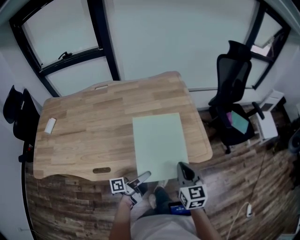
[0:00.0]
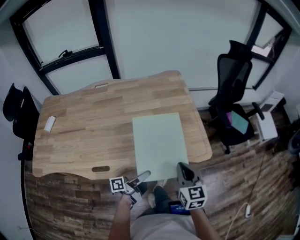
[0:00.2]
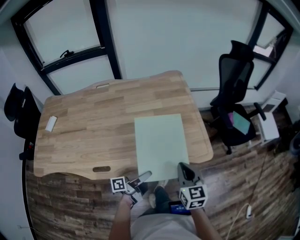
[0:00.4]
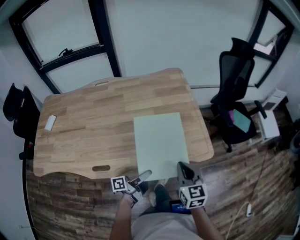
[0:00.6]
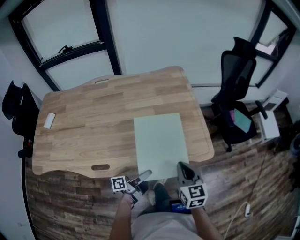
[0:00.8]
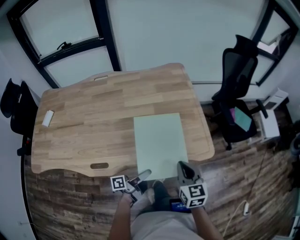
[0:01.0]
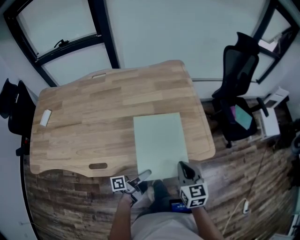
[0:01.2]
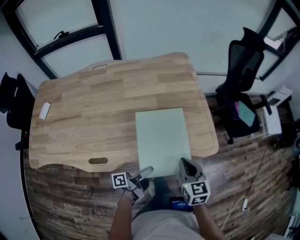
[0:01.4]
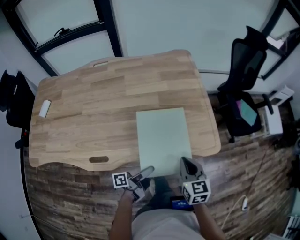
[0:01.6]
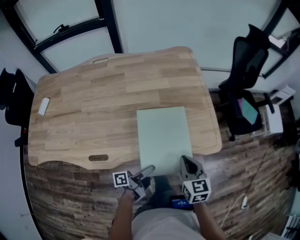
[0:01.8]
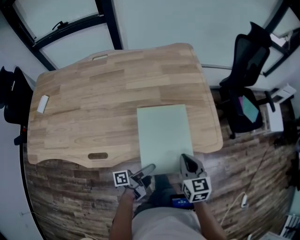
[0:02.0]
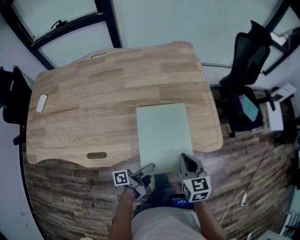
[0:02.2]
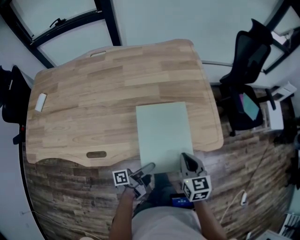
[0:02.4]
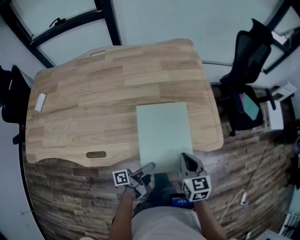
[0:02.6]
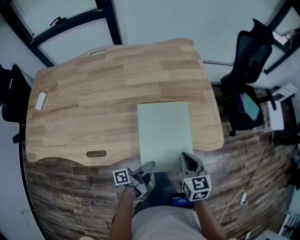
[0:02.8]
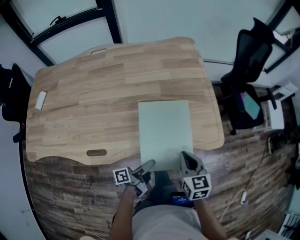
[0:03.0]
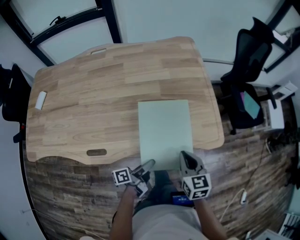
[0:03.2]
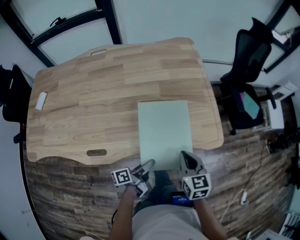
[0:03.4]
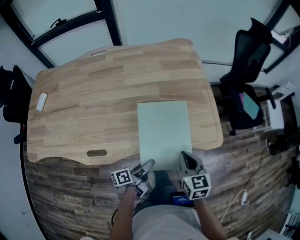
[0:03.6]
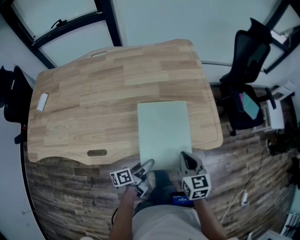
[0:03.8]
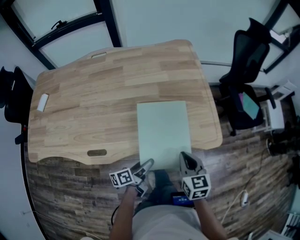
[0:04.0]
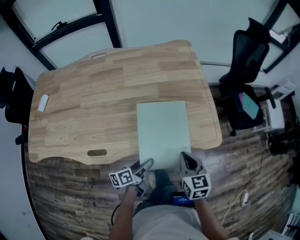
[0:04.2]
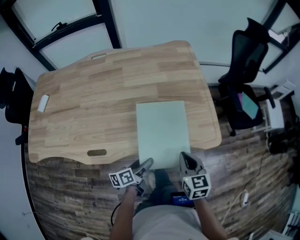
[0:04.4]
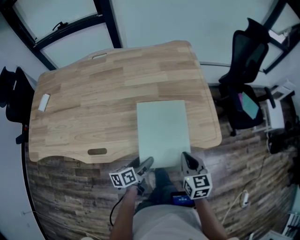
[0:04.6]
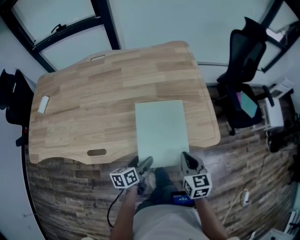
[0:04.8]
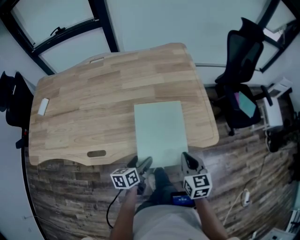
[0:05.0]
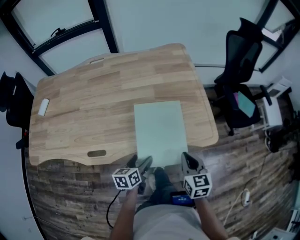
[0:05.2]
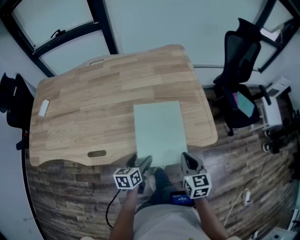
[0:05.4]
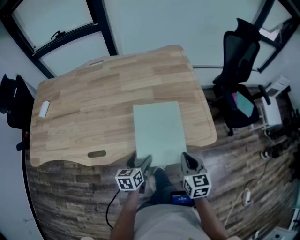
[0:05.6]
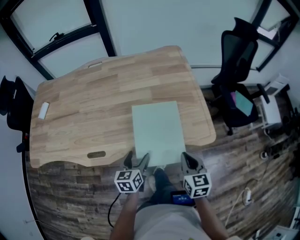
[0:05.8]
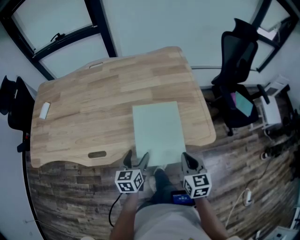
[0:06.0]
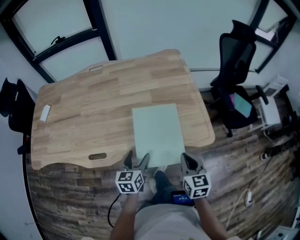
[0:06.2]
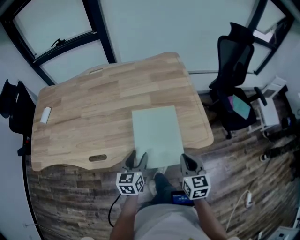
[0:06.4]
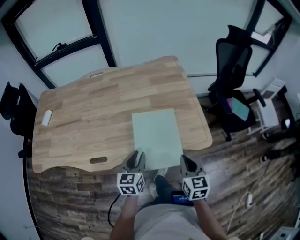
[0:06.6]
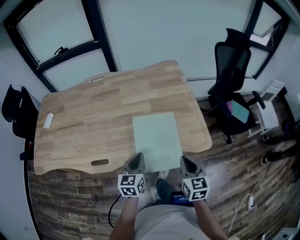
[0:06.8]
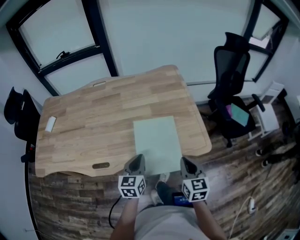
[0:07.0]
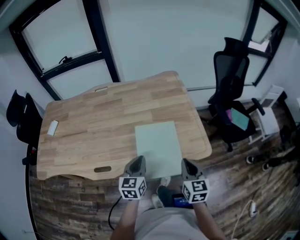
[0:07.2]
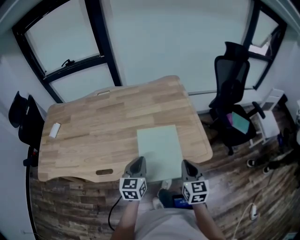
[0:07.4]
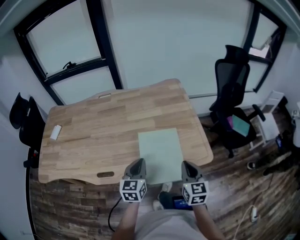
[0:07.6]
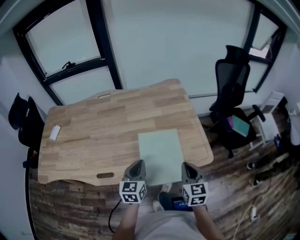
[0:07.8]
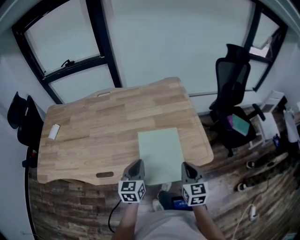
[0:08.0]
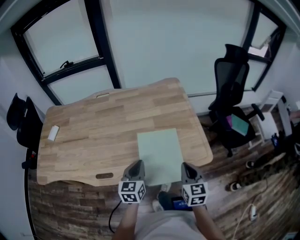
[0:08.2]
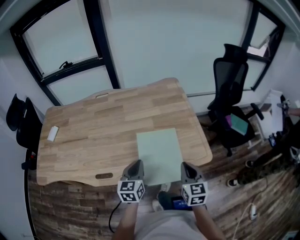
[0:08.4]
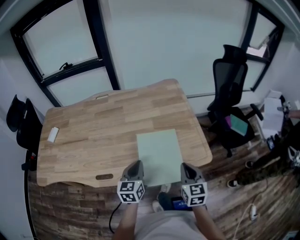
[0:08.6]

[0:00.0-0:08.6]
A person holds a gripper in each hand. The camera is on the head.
0:00.0 to 0:01.4: The grippers both shift downward by roughly 5 cm.
0:01.4 to 0:02.8: There are only small adjustments of the grippers.
0:02.8 to 0:04.4: The left gripper turns by some 30 degrees.
0:04.4 to 0:05.8: The left gripper changes place by about 5 cm, and rotates approximately 40 degrees.
0:05.8 to 0:07.2: The right gripper moves upward, approximately 5 cm; the left gripper goes roughly 10 cm upward, and closes up.
0:07.2 to 0:08.6: The grippers move only a little.

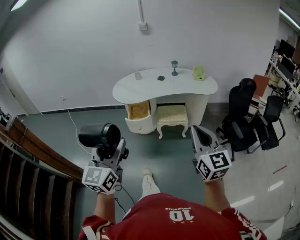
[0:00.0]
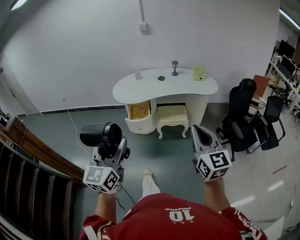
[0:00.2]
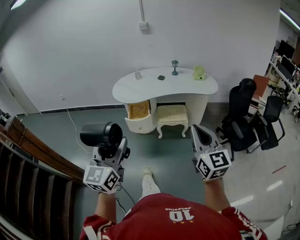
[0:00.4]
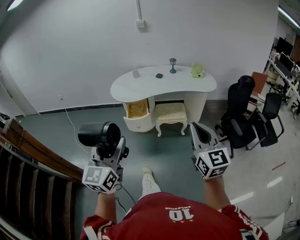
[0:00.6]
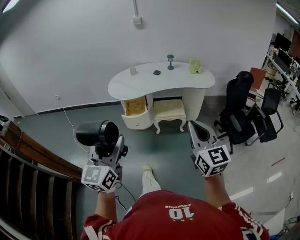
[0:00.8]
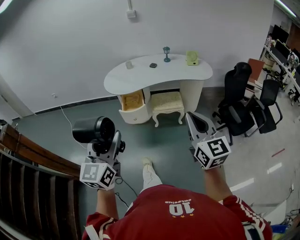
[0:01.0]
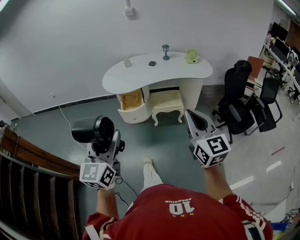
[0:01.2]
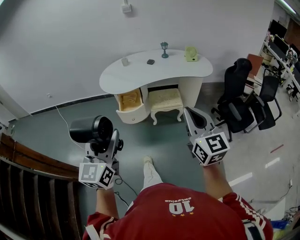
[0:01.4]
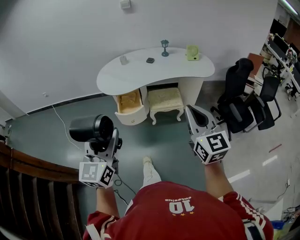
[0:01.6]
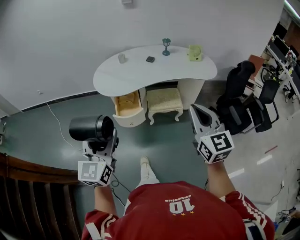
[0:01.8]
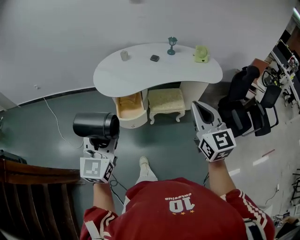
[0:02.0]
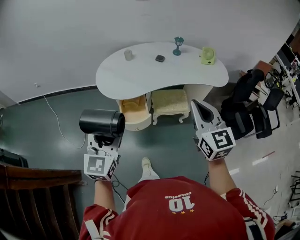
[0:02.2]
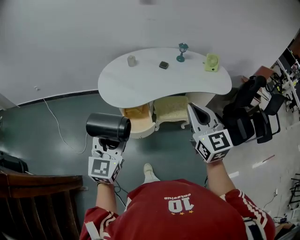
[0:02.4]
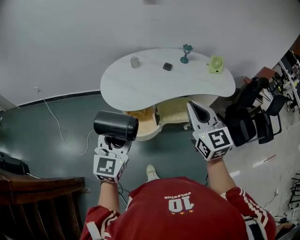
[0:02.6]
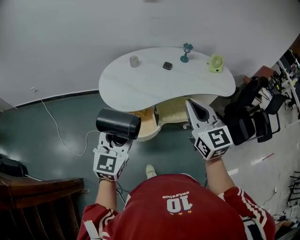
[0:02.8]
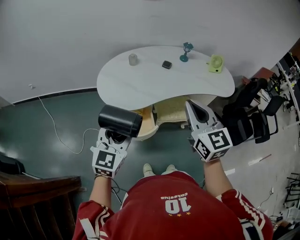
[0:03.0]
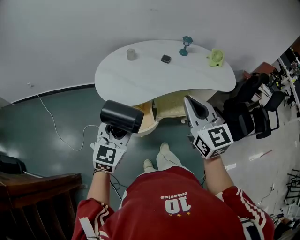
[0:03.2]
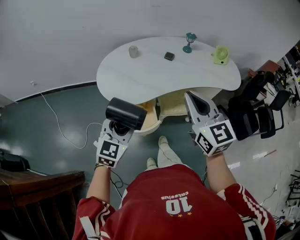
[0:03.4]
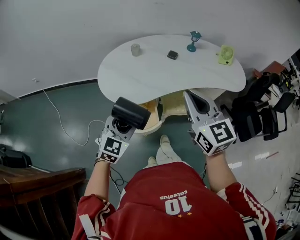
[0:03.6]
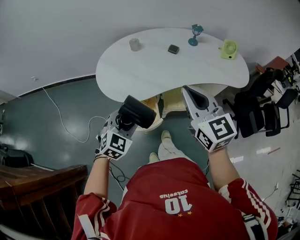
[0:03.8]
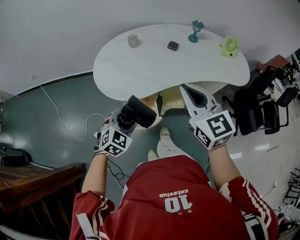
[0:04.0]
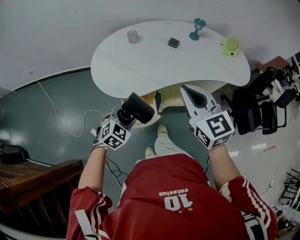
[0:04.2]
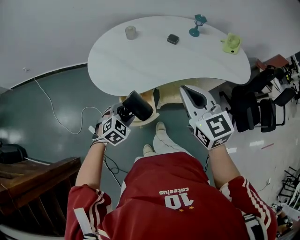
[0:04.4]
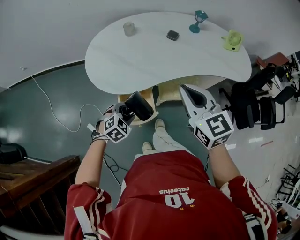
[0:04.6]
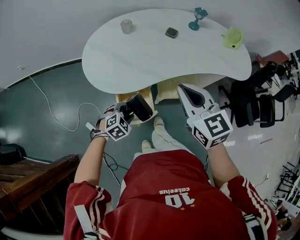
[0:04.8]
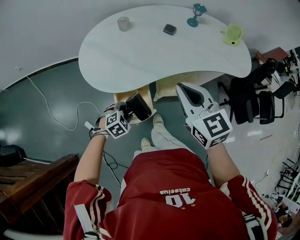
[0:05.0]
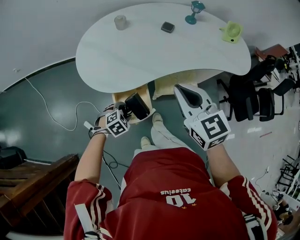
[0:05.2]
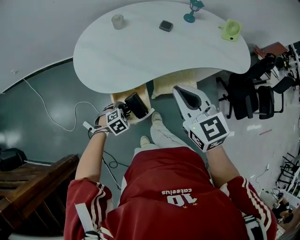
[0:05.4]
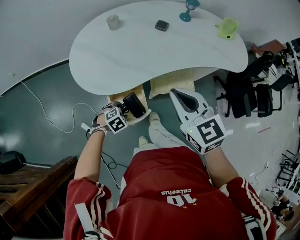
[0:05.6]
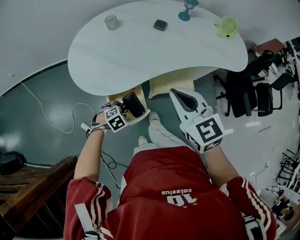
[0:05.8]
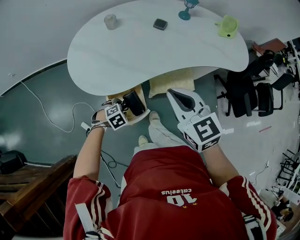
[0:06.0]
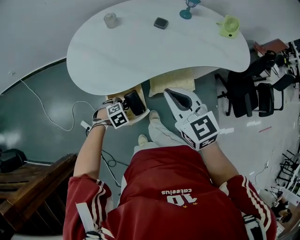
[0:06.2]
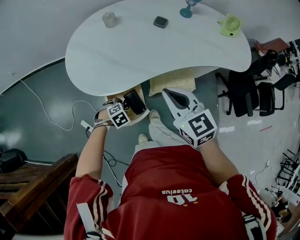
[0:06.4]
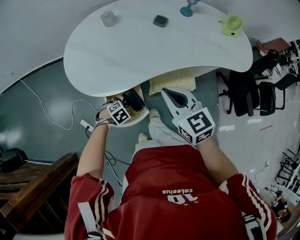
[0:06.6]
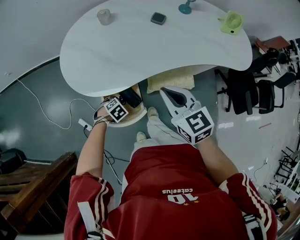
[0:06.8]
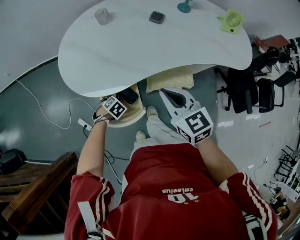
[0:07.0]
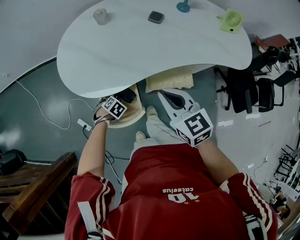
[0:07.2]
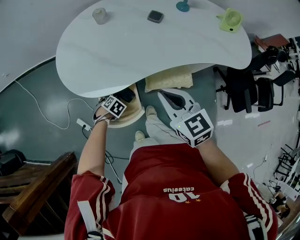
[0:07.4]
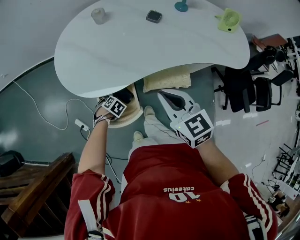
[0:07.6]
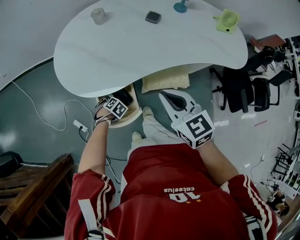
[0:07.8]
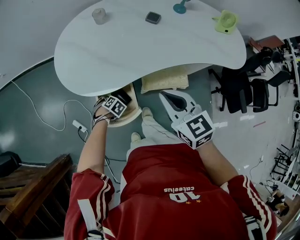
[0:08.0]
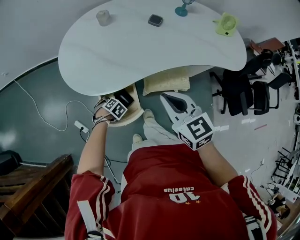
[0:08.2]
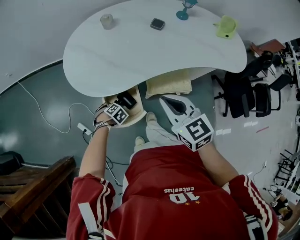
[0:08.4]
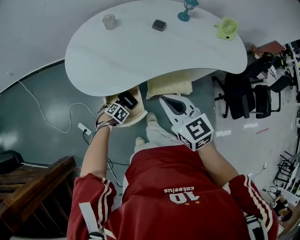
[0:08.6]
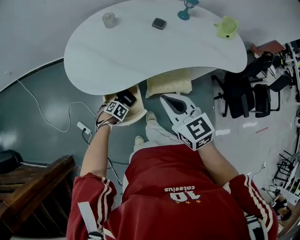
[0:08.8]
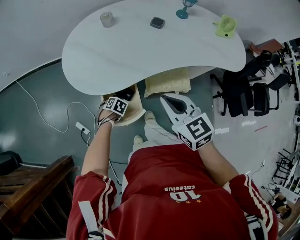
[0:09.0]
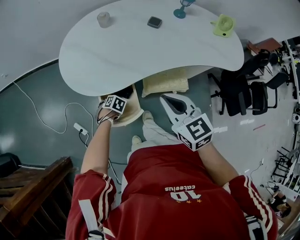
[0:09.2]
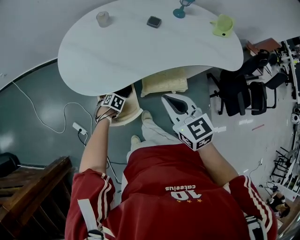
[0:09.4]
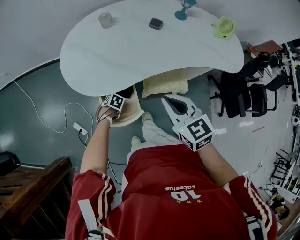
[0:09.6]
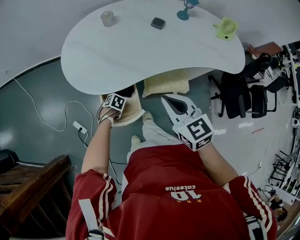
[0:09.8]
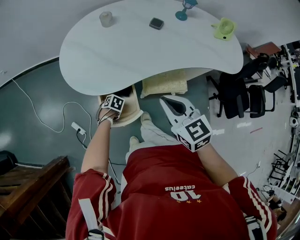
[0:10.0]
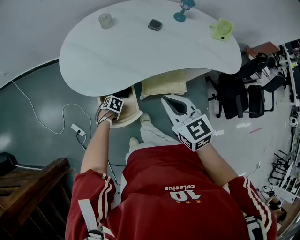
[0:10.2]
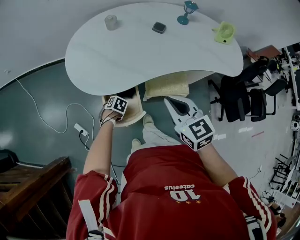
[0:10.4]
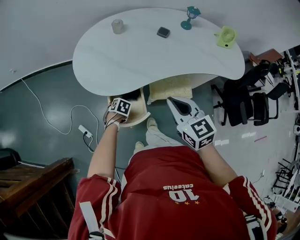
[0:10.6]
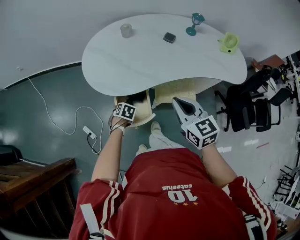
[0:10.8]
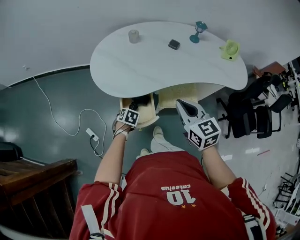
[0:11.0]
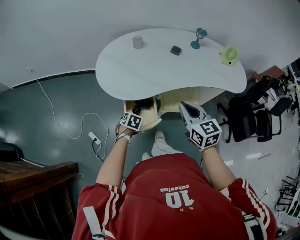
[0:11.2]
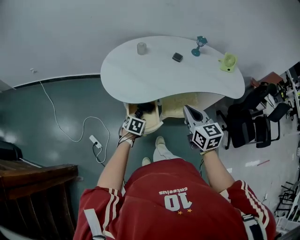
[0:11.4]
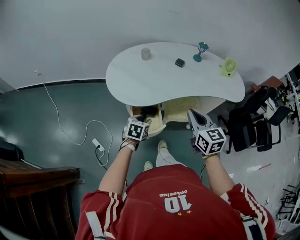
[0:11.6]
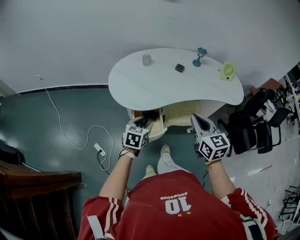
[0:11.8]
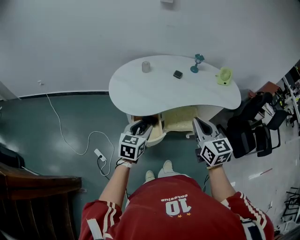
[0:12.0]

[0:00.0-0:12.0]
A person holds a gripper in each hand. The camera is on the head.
0:00.0 to 0:01.6: Both grippers move forward, approximately 15 cm.
0:01.6 to 0:03.0: The left gripper is displaced forward by roughly 30 cm, and changes its angle by some 20 degrees; the right gripper shifts approximately 35 cm forward and to the left.
0:03.0 to 0:04.4: The left gripper moves downward, roughly 25 cm, and tilts its fingers about 40 degrees downward. Meanwhile the right gripper heads downward and forward, covering about 15 cm.
0:04.4 to 0:06.0: The left gripper is displaced downward by roughly 15 cm, and swivels approximately 30 degrees, while the right gripper goes about 10 cm downward.
0:06.0 to 0:07.6: Both grippers move downward, approximately 10 cm. The left gripper swivels roughly 30 degrees.
0:07.6 to 0:09.0: The grippers make only small movements.
0:09.0 to 0:10.4: The grippers move only a little.
0:10.4 to 0:12.0: The left gripper shifts approximately 40 cm upward, and points its fingers approximately 60 degrees further upward. Meanwhile the right gripper heads upward, covering approximately 15 cm.

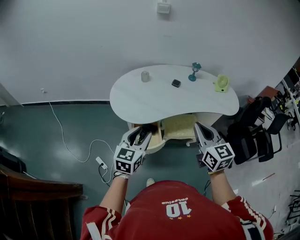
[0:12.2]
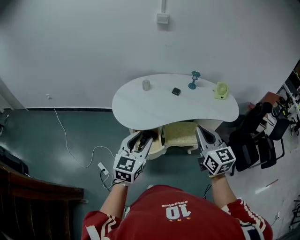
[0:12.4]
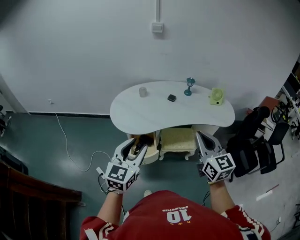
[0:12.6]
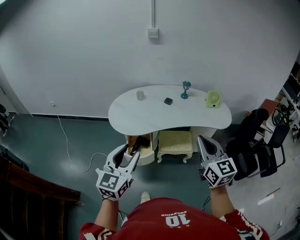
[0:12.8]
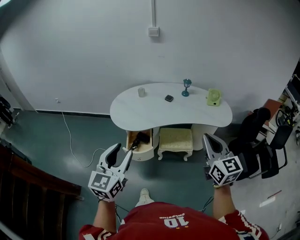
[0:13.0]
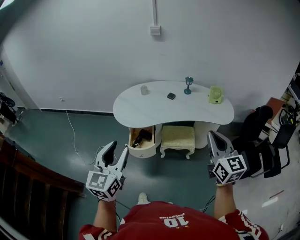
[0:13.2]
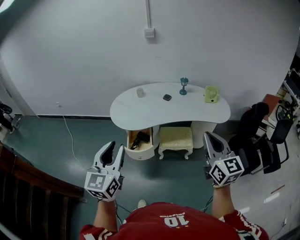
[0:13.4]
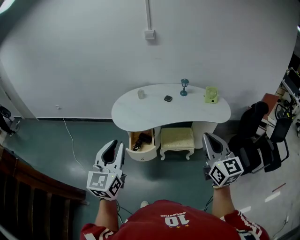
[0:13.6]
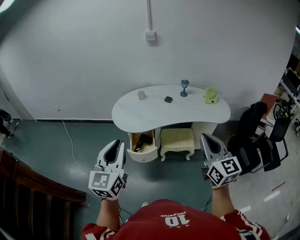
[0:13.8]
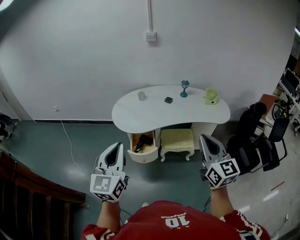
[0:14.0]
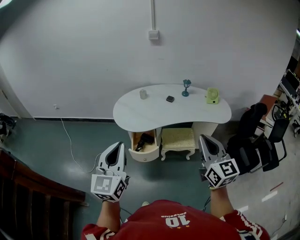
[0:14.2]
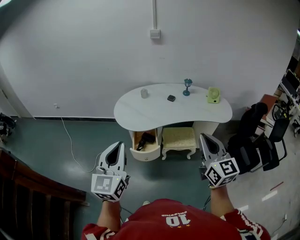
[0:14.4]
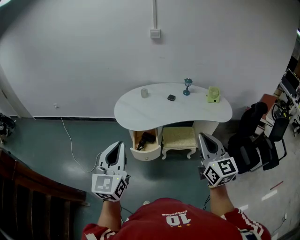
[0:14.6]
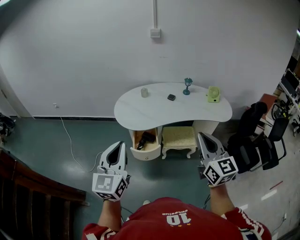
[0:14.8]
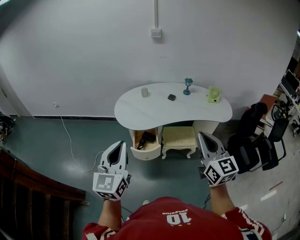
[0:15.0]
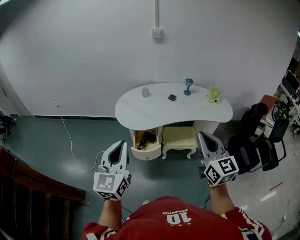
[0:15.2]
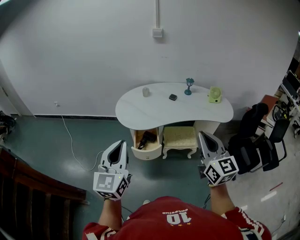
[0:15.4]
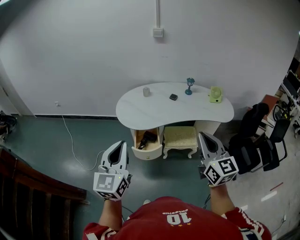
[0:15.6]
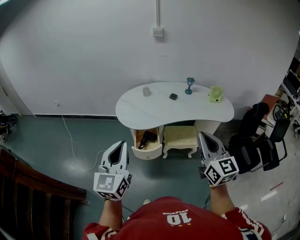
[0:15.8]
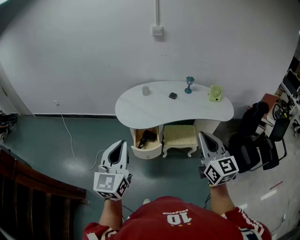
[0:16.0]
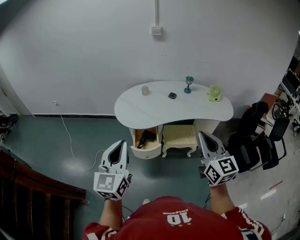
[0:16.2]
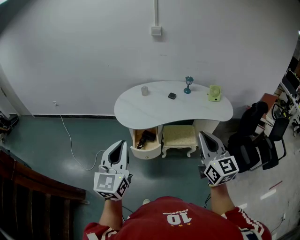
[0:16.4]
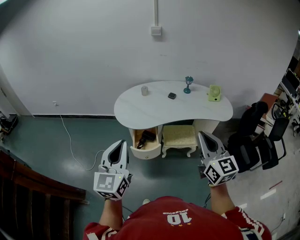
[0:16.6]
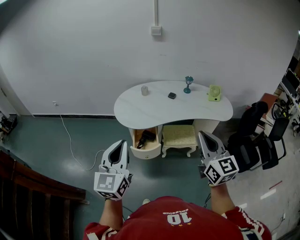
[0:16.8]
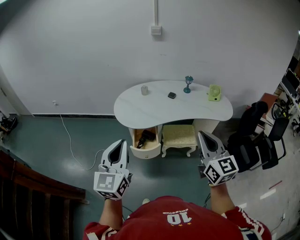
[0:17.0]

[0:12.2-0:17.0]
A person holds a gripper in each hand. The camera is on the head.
0:12.2 to 0:13.8: The left gripper is displaced backward and upward by about 25 cm, rotates roughly 30 degrees, and closes up. Meanwhile the right gripper goes roughly 25 cm backward, to the right and upward.
0:13.8 to 0:15.4: The right gripper shifts some 5 cm to the left.
0:15.4 to 0:17.0: The two grippers keep their place.
